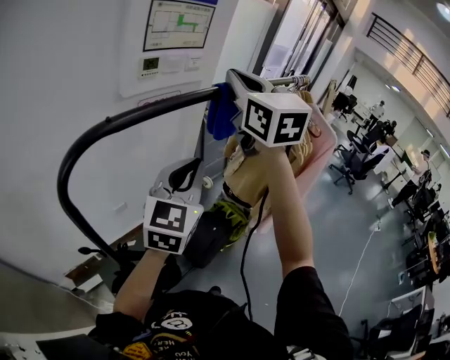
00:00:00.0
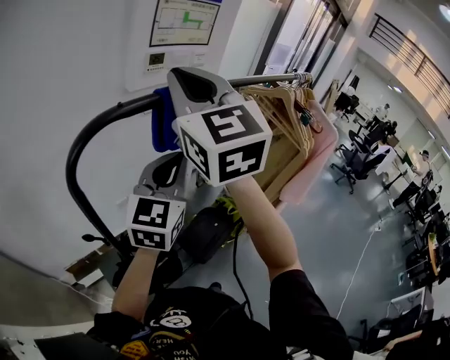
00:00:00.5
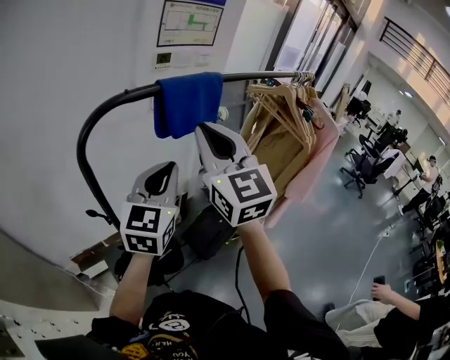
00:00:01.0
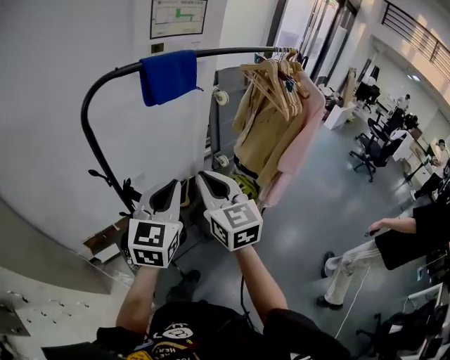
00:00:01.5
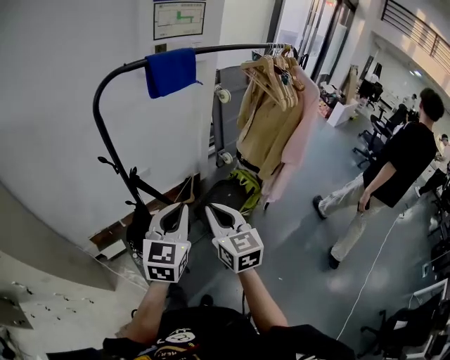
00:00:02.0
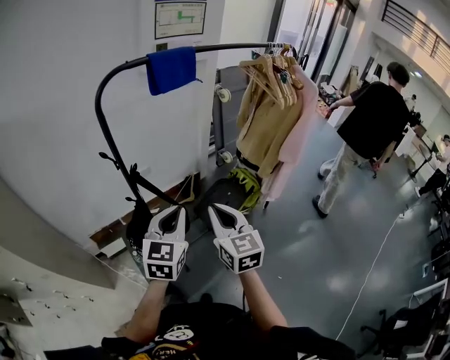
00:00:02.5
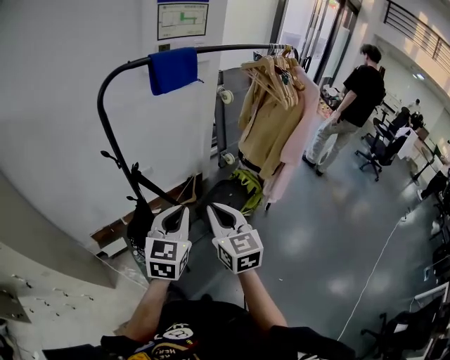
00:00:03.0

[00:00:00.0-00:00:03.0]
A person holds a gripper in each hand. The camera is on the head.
00:00:00.0 to 00:00:01.5: The left gripper is displaced backward by about 25 cm. The right gripper travels backward and downward by about 40 cm.
00:00:01.5 to 00:00:03.0: The grippers both shift backward and downward by approximately 15 cm.

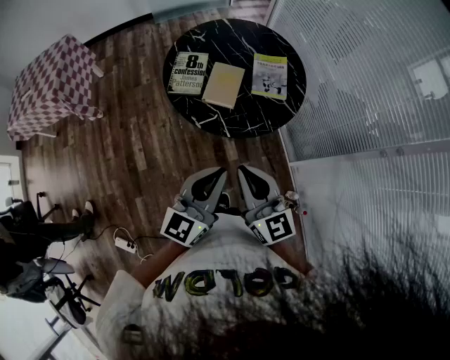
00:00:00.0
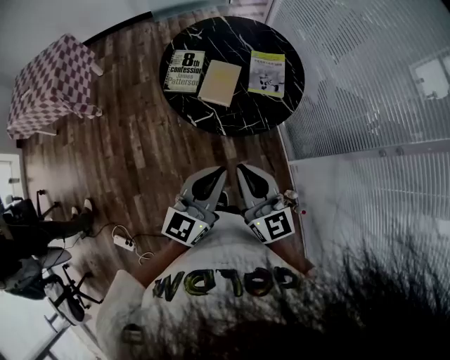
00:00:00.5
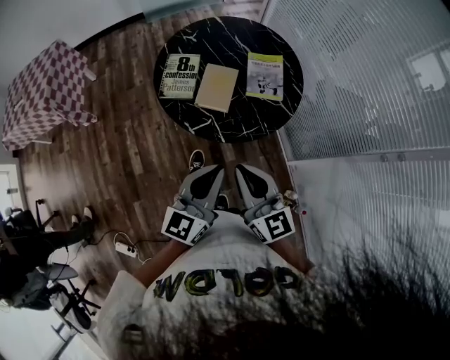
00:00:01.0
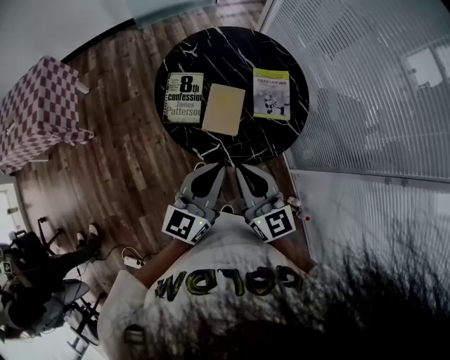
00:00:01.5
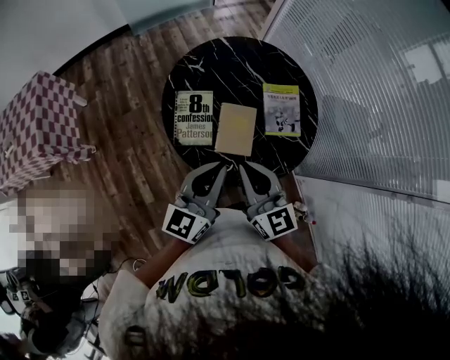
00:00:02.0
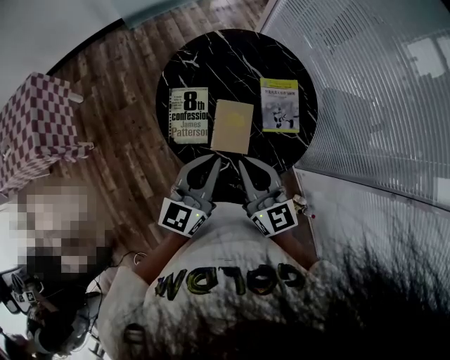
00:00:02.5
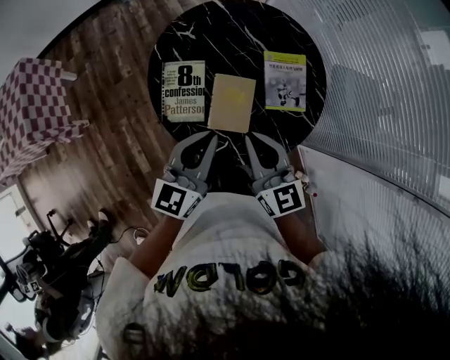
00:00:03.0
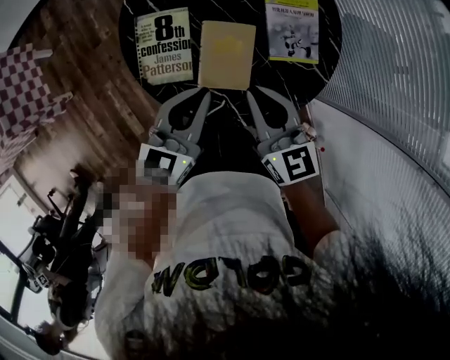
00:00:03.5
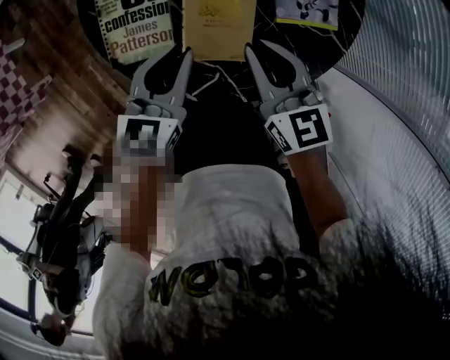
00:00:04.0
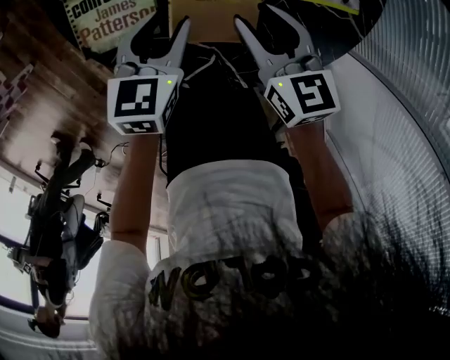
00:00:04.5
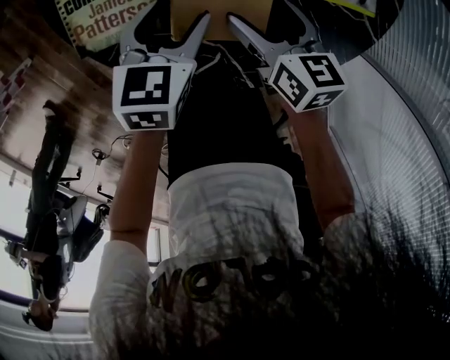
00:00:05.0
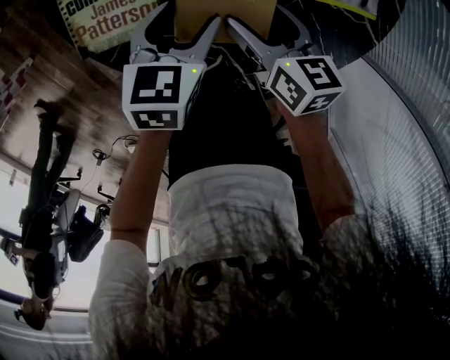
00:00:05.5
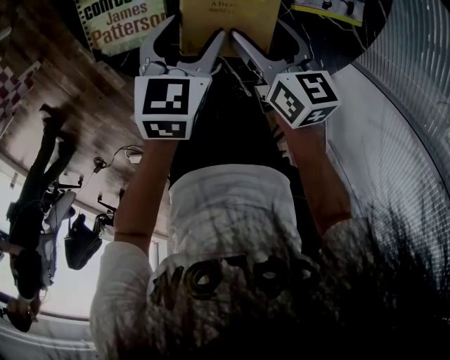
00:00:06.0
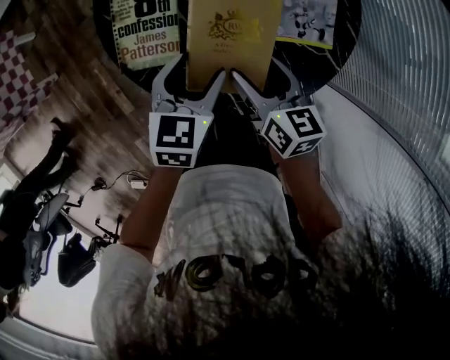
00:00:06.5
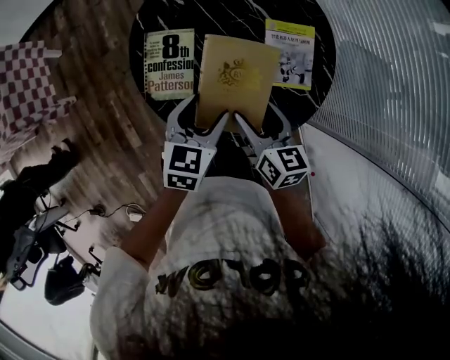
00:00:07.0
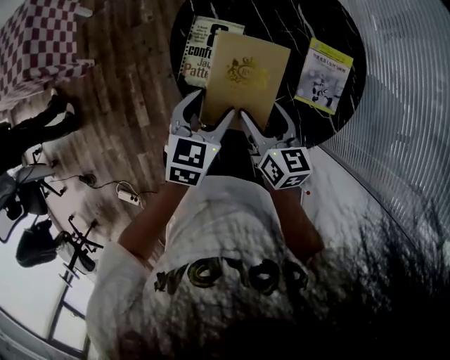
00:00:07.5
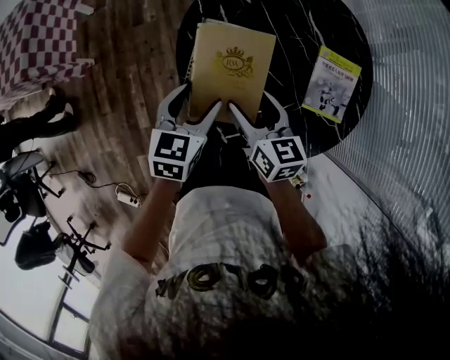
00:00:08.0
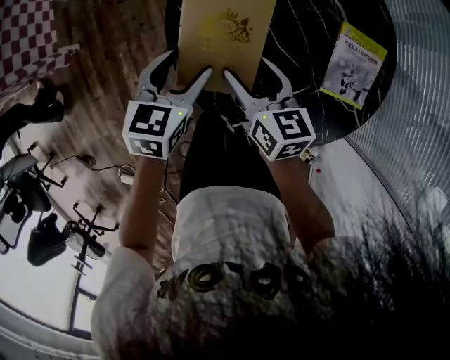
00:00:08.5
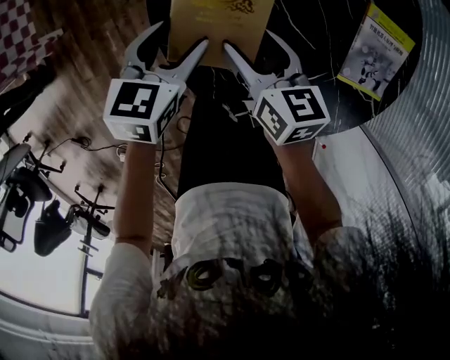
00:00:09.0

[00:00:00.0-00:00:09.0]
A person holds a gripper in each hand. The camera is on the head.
00:00:00.0 to 00:00:02.0: Both grippers travel together forward, about 30 cm.
00:00:02.0 to 00:00:04.5: Both grippers travel together downward, approximately 35 cm. The left gripper angles its fingers downward, by approximately 40 degrees, and opens its fingers, while the right gripper turns by about 30 degrees, and opens up.
00:00:04.5 to 00:00:07.0: The grippers both shift upward by approximately 15 cm. The left gripper opens its fingers, while the right gripper opens its fingers.
00:00:07.0 to 00:00:09.0: The two grippers go approximately 25 cm to the left, downward and forward.

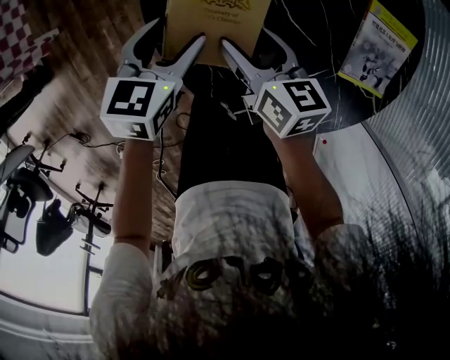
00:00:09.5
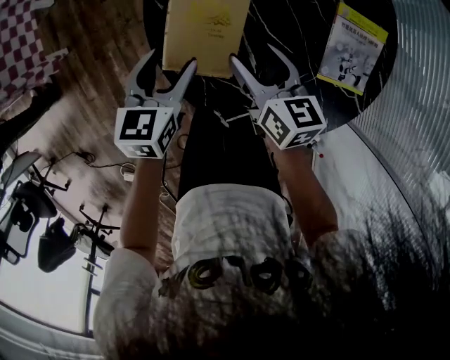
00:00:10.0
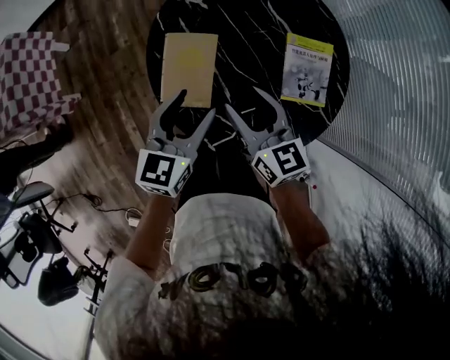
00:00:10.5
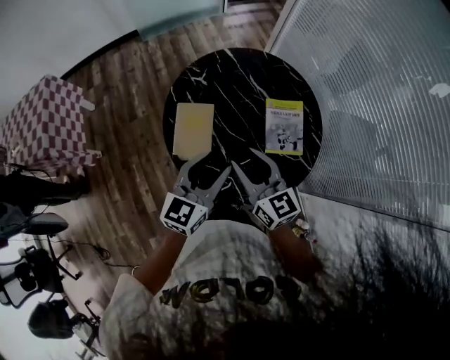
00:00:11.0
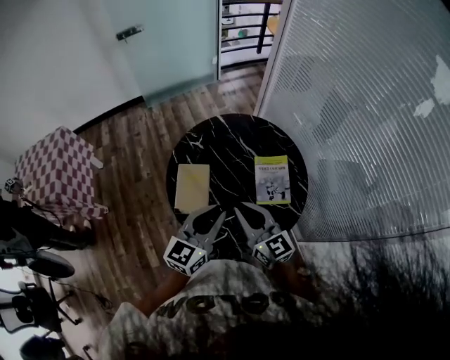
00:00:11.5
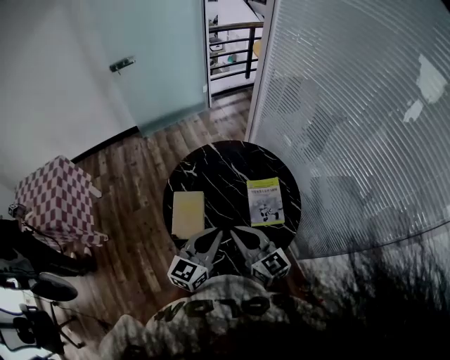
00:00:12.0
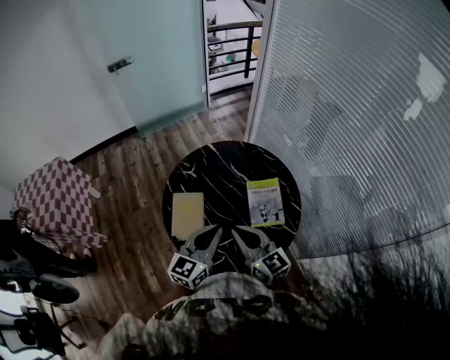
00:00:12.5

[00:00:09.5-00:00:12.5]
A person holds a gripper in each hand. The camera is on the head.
00:00:09.5 to 00:00:11.0: The left gripper shifts some 35 cm upward and to the right, tips its fingers upward by roughly 30 degrees, and closes; the right gripper shifts roughly 30 cm upward, and turns by roughly 40 degrees.
00:00:11.0 to 00:00:12.5: The grippers both shift upward by about 5 cm. The right gripper closes. The left gripper closes up.

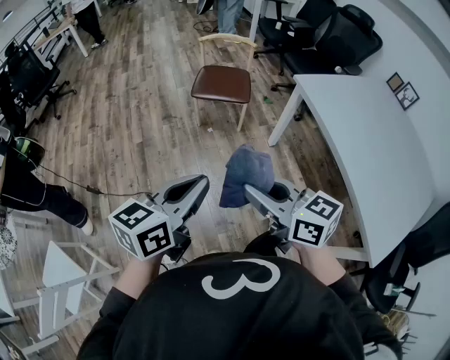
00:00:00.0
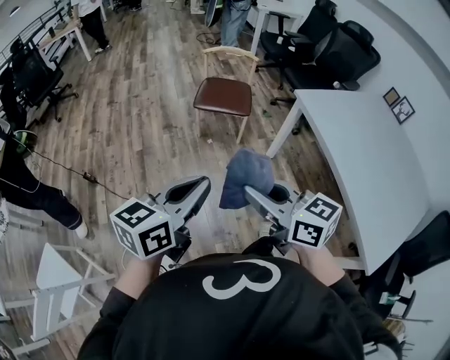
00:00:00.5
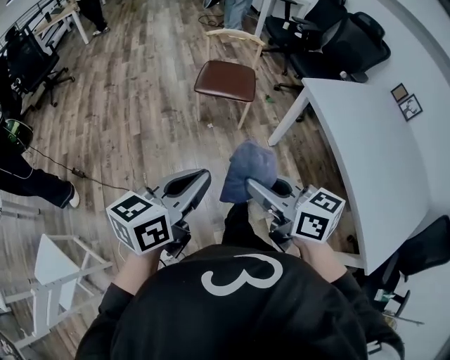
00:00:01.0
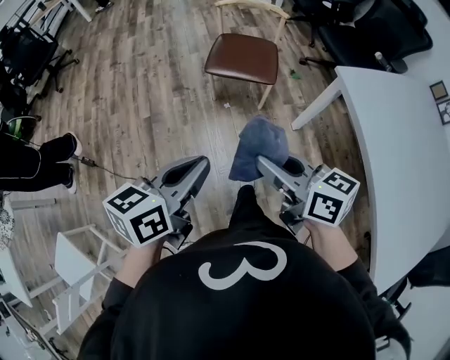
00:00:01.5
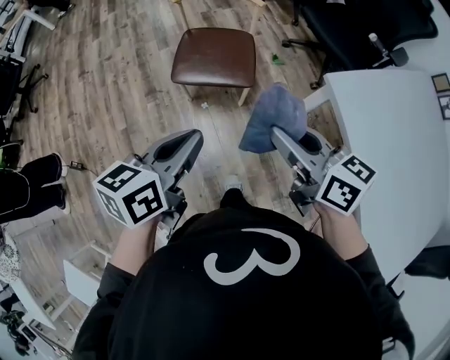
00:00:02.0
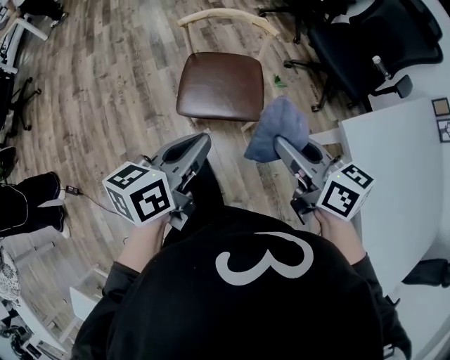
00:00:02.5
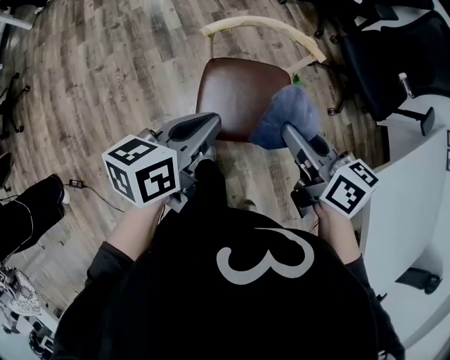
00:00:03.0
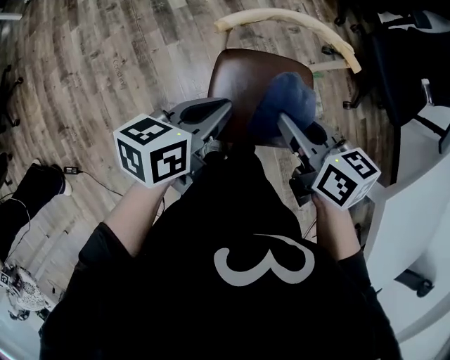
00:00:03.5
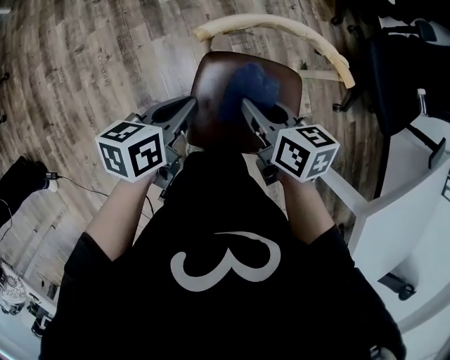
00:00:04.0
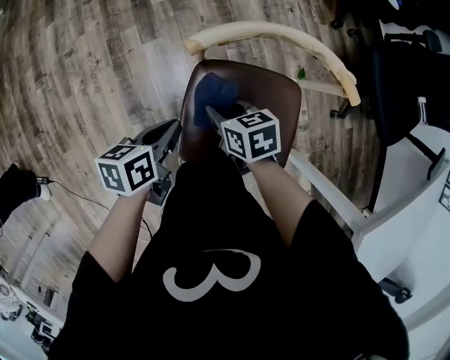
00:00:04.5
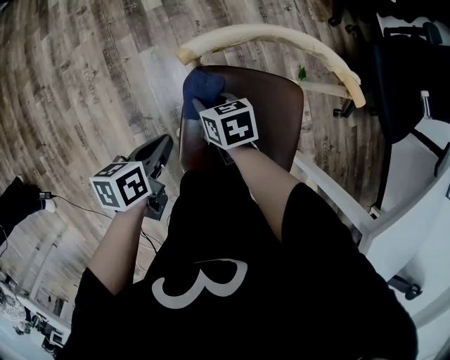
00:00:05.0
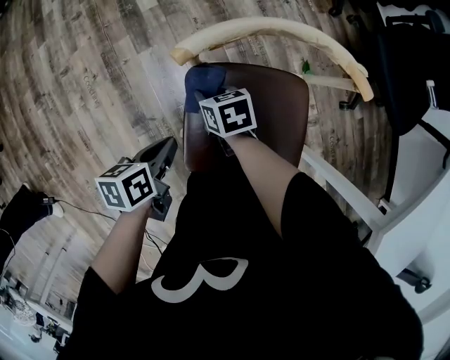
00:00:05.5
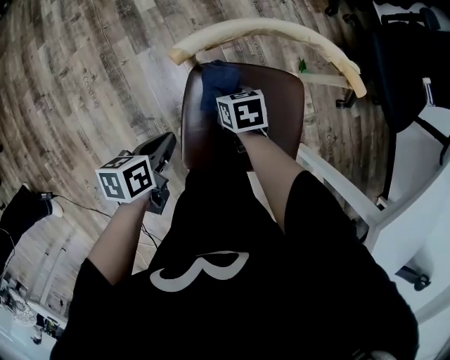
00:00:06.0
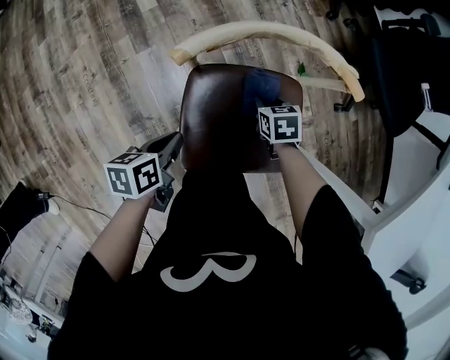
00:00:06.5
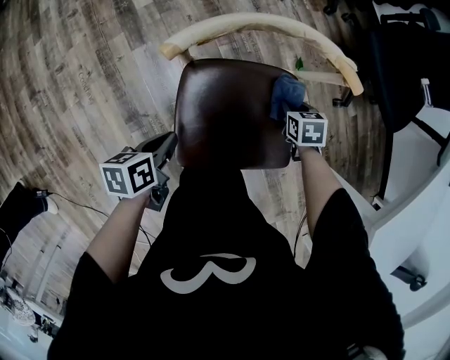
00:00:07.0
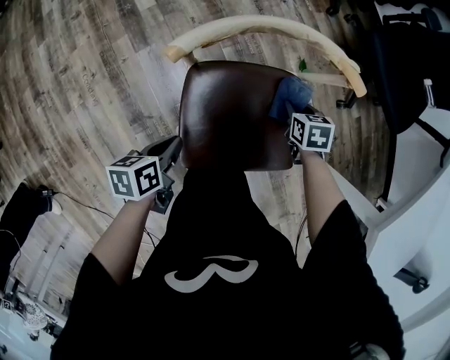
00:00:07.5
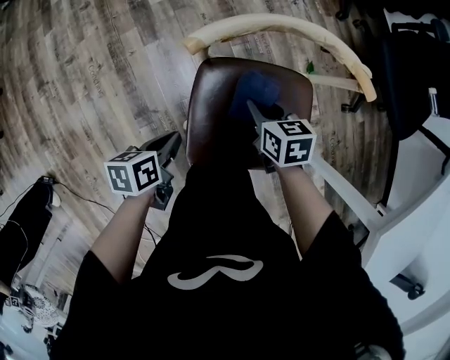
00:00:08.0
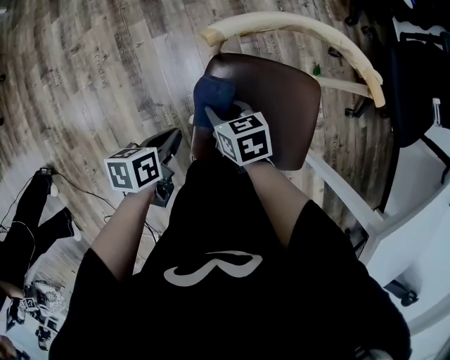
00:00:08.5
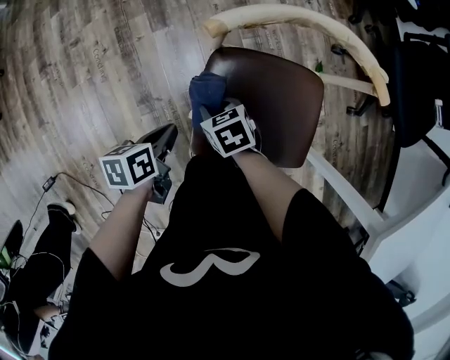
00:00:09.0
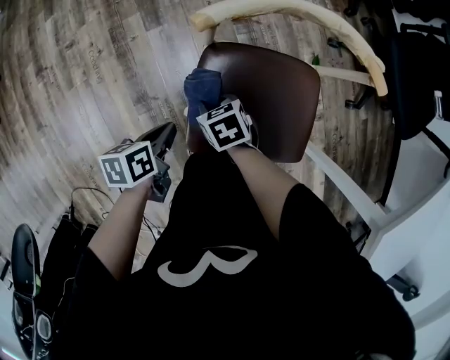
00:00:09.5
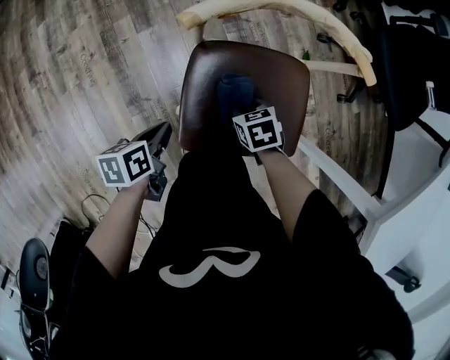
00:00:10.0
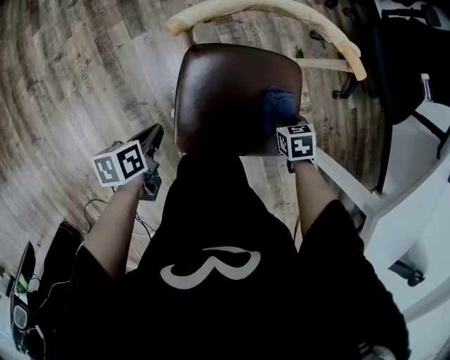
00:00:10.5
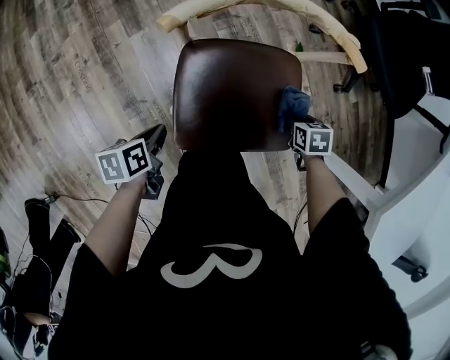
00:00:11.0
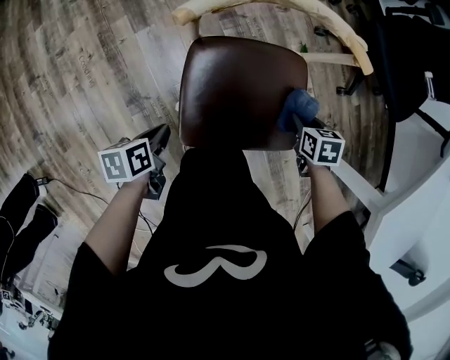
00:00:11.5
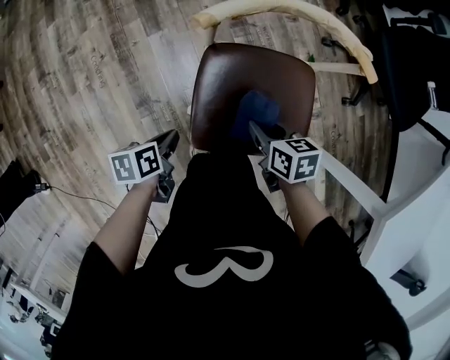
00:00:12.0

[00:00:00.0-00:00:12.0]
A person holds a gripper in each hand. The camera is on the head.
00:00:00.0 to 00:00:02.0: The pair of grippers is taken forward, about 40 cm.
00:00:02.0 to 00:00:04.0: The two grippers travel together, forward and to the left, roughly 50 cm. The two grippers go about 25 cm downward. The right gripper changes its angle by some 20 degrees.
00:00:04.0 to 00:00:06.0: The left gripper is displaced downward by roughly 15 cm. Meanwhile the right gripper travels downward by about 20 cm, and changes its angle by roughly 20 degrees.
00:00:06.0 to 00:00:08.0: The right gripper travels upward by some 5 cm, and moves about 20 cm to the right and comes back.
00:00:08.0 to 00:00:10.0: The right gripper goes about 10 cm downward and backward, reaches roughly 15 cm to the left, then returns, and changes its angle by approximately 20 degrees.
00:00:10.0 to 00:00:12.0: The right gripper shifts roughly 10 cm upward, and turns by approximately 20 degrees.
